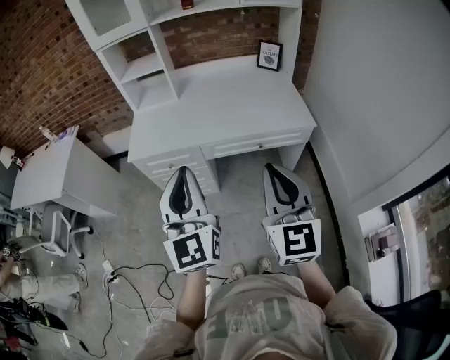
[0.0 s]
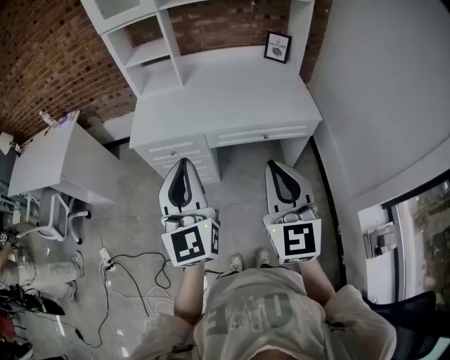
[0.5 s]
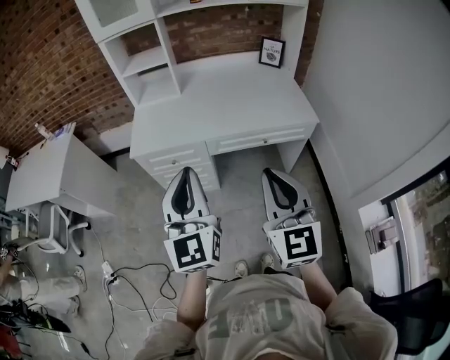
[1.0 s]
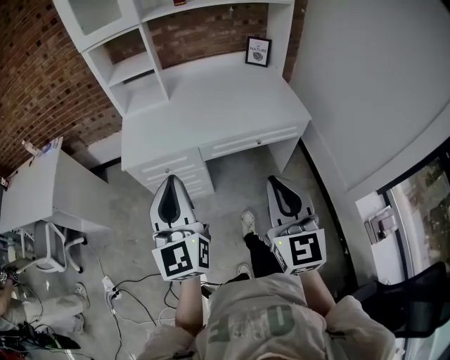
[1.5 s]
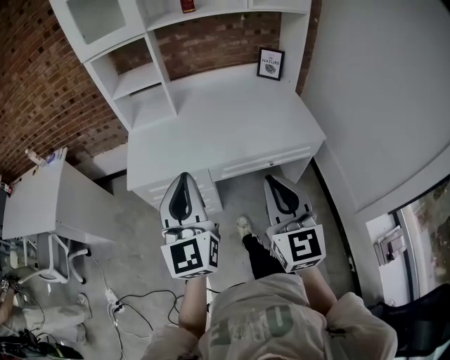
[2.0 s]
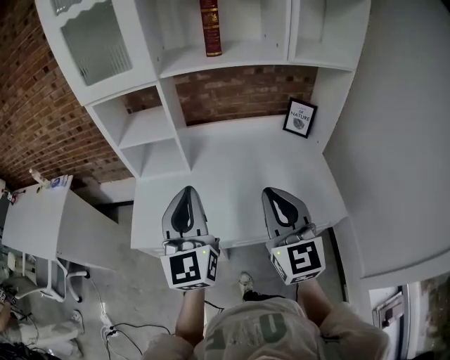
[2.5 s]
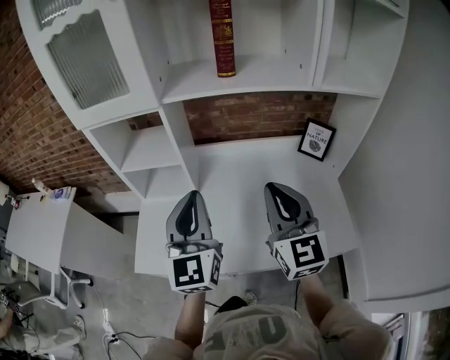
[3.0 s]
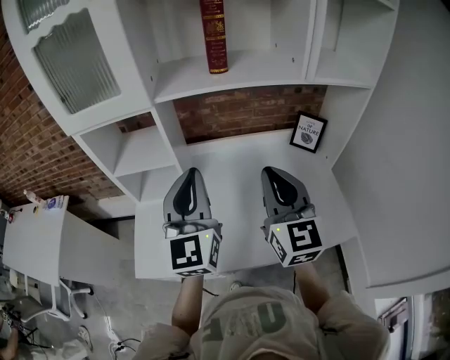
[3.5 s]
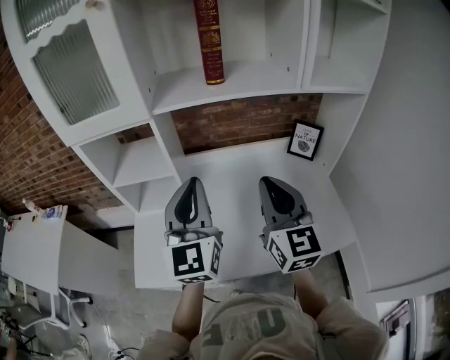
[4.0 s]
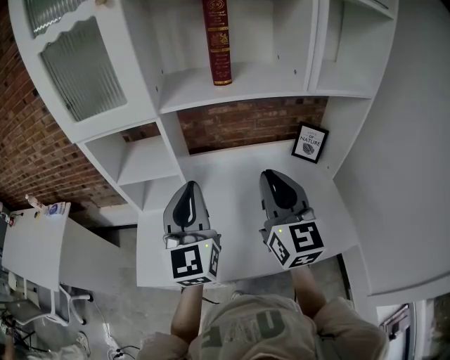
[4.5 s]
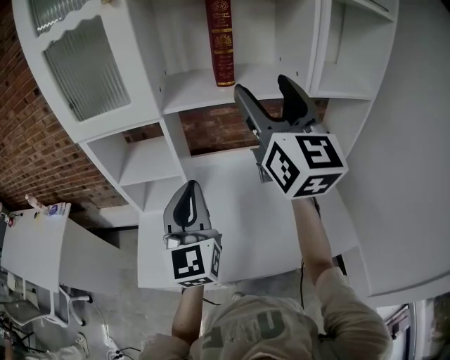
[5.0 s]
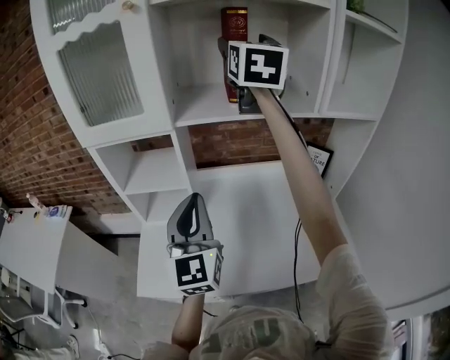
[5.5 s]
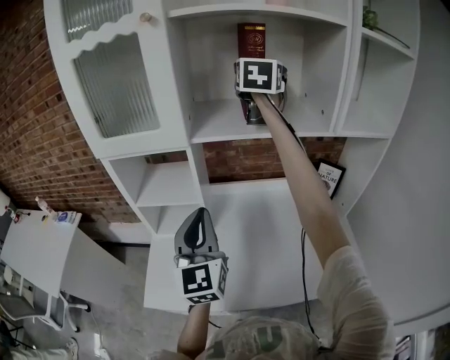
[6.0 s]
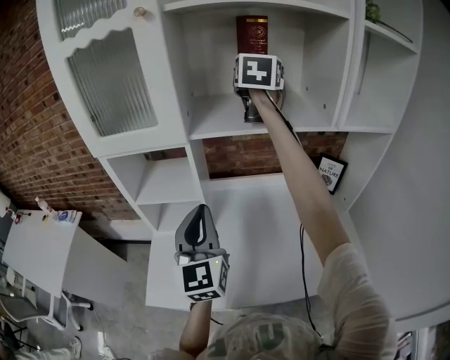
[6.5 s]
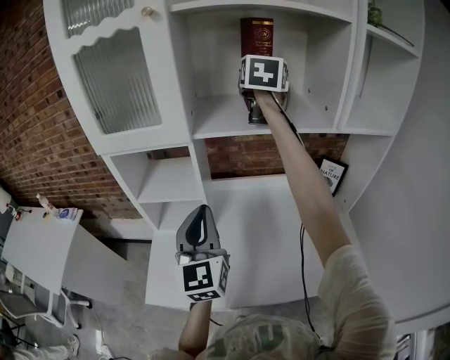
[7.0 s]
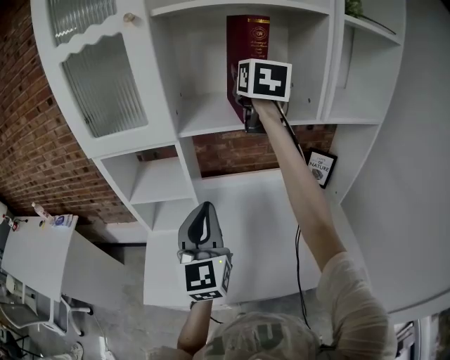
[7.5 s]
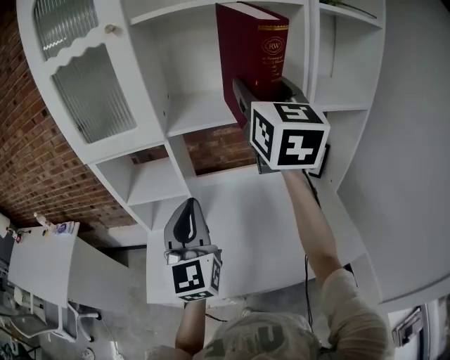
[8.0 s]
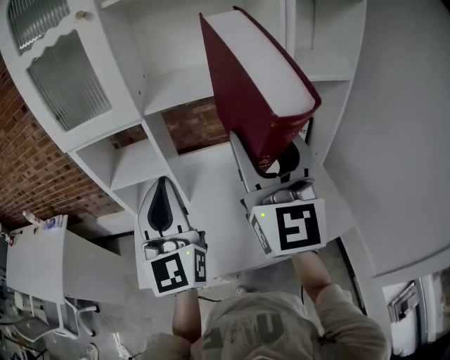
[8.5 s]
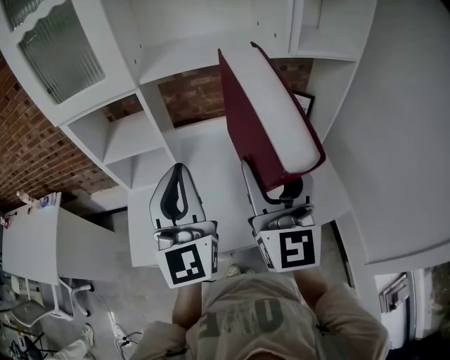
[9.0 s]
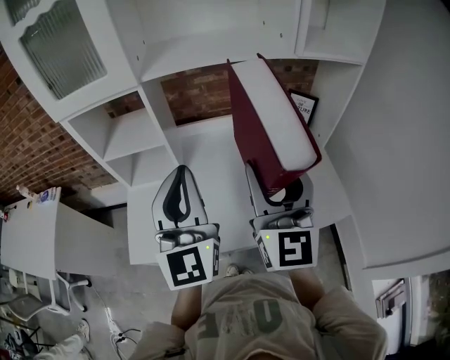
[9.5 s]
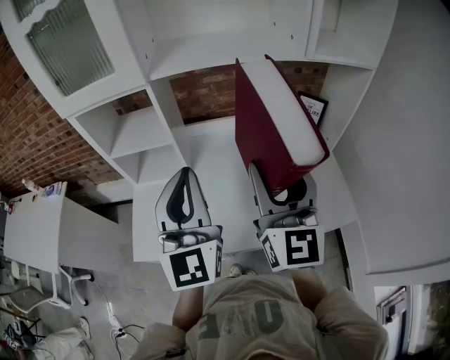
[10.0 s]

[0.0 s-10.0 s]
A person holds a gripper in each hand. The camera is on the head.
0.0 to 2.0 s: Both grippers travel together forward and to the left, some 15 cm.
2.0 to 4.0 s: Both grippers travel together forward, about 40 cm.
4.0 to 6.0 s: The left gripper travels to the left by some 5 cm. The right gripper goes approximately 40 cm forward and upward, and opens up.
6.0 to 8.0 s: The right gripper heads backward, covering about 20 cm; the left gripper moves approximately 5 cm.
8.0 to 10.0 s: The right gripper goes approximately 25 cm downward and backward. The left gripper ends up some 5 cm from where it was.

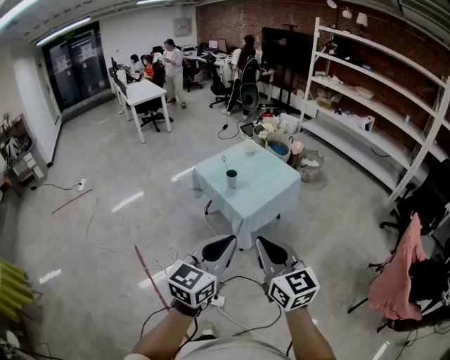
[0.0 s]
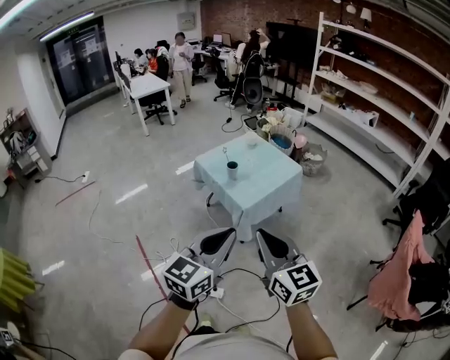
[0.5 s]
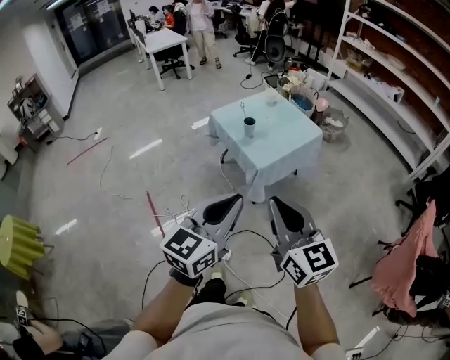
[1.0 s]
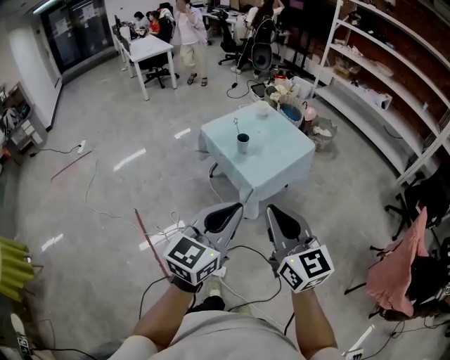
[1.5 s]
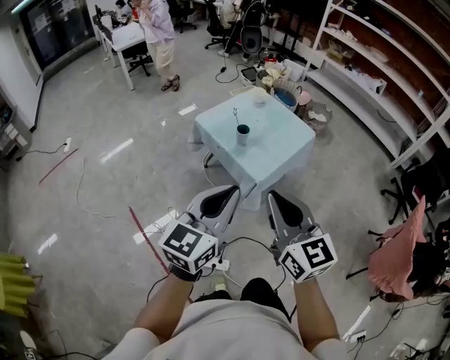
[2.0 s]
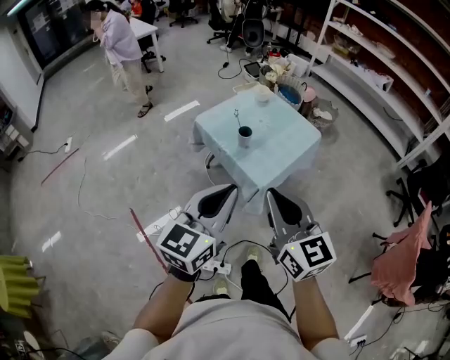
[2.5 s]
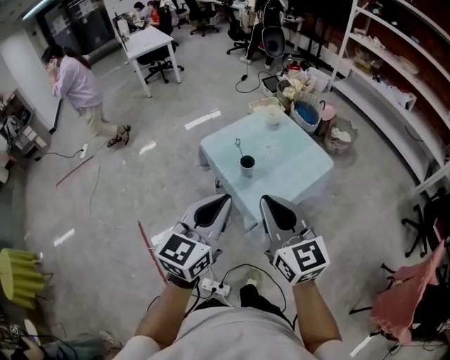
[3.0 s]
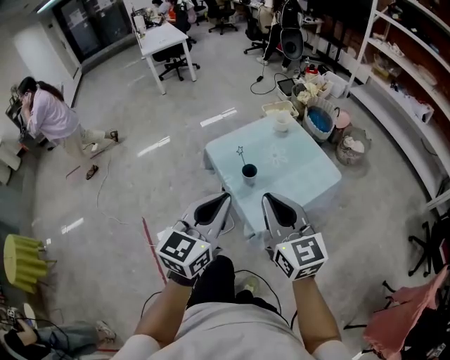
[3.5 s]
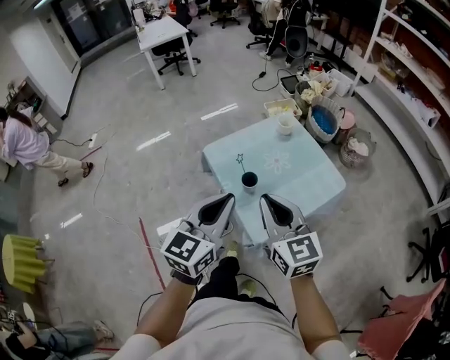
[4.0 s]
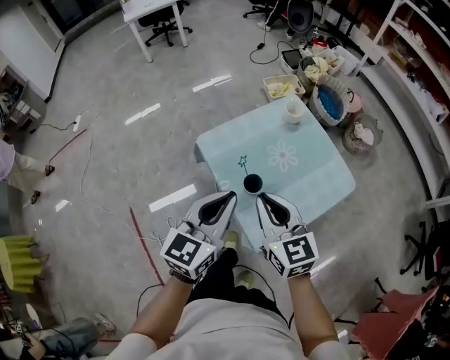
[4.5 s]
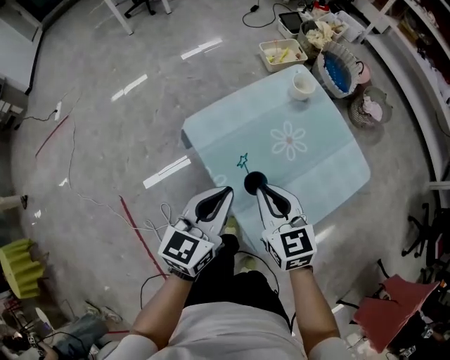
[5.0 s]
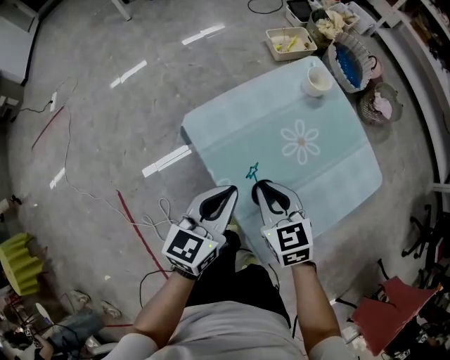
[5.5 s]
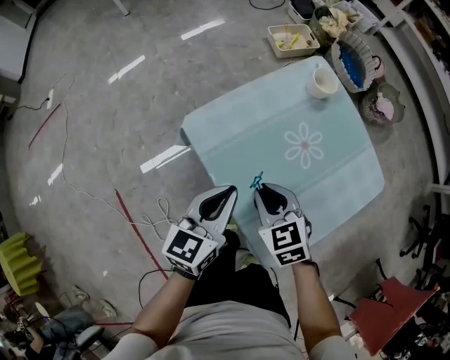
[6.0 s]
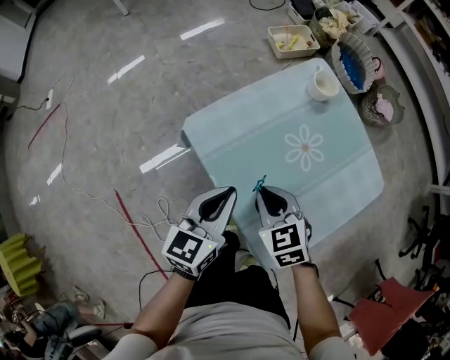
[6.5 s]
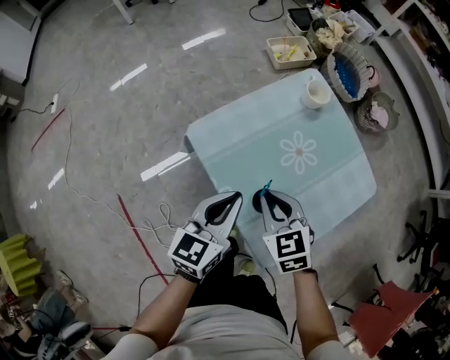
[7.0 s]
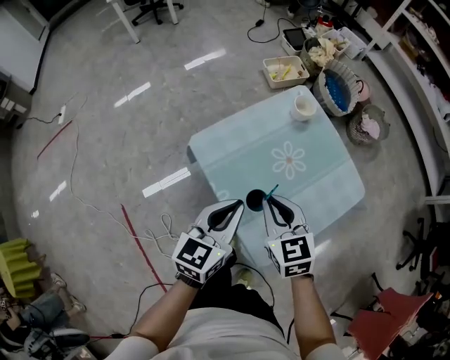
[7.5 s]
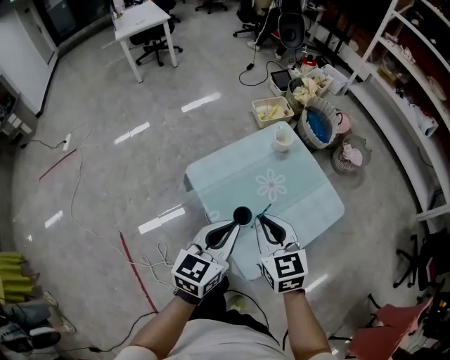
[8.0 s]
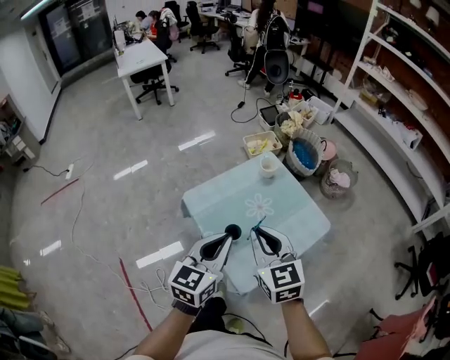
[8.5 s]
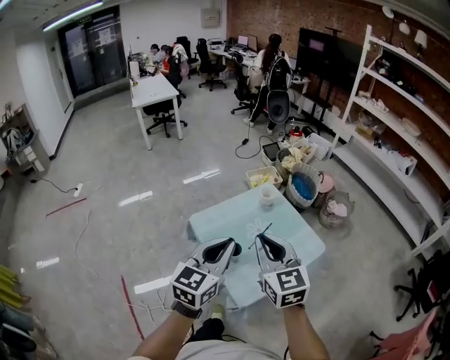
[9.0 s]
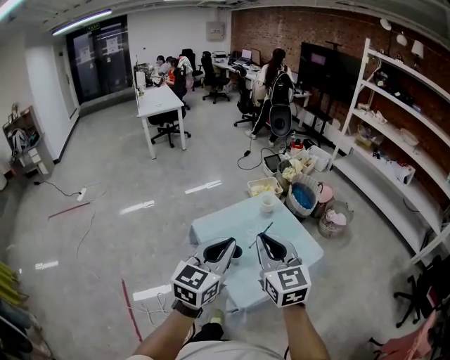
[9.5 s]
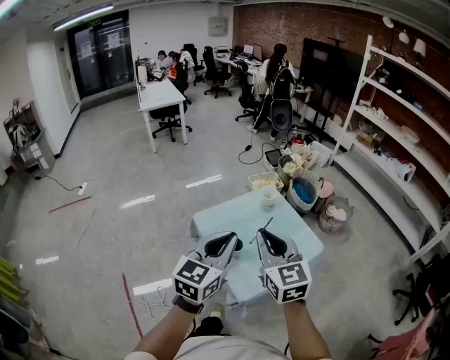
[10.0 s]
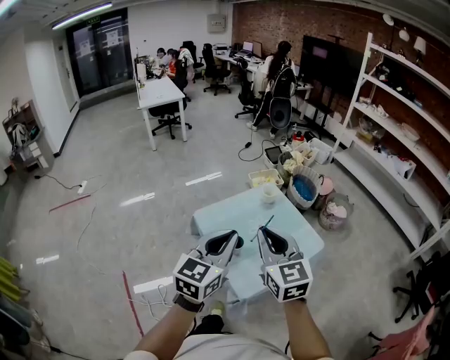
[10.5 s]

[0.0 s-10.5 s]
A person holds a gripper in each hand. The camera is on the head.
0.0 to 2.0 s: Both grippers travel together forward and to the left, some 15 cm.
2.0 to 4.0 s: The two grippers go roughly 35 cm forward.
4.0 to 6.5 s: The grippers both shift downward and forward by approximately 40 cm. The right gripper tilts its fingers approximately 40 degrees downward.
6.5 to 8.5 s: The right gripper moves upward, approximately 30 cm, and swivels approximately 30 degrees, while the left gripper heads upward and backward, covering about 25 cm.
8.5 to 10.5 s: The two grippers go roughly 15 cm upward and backward.

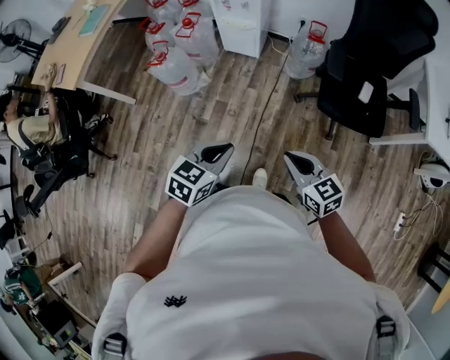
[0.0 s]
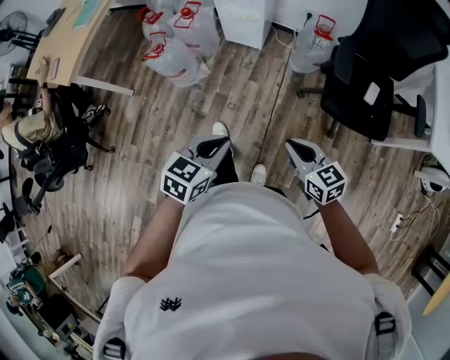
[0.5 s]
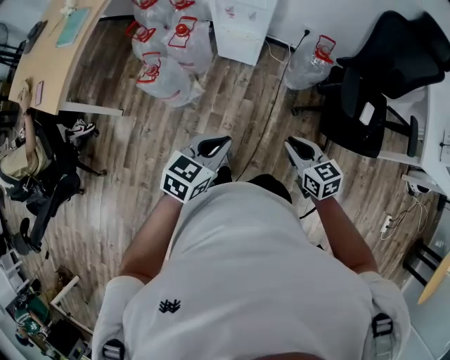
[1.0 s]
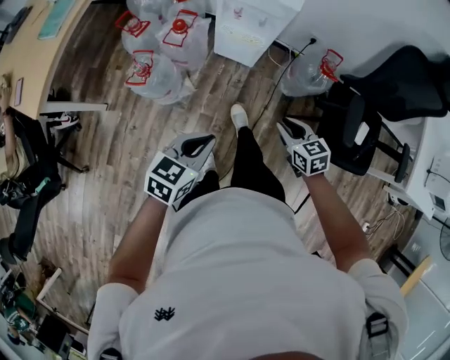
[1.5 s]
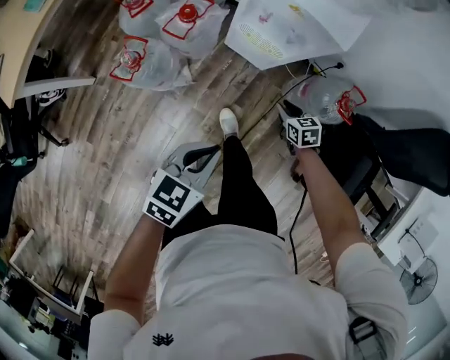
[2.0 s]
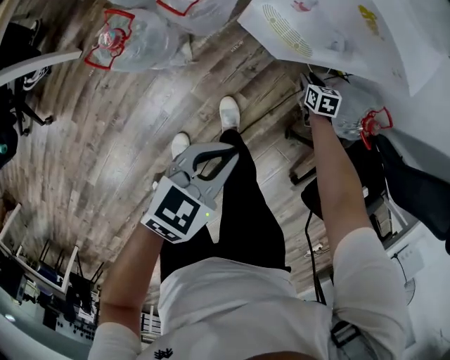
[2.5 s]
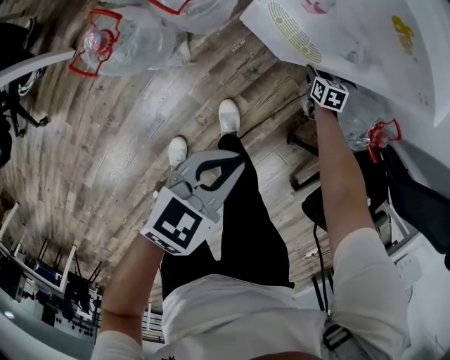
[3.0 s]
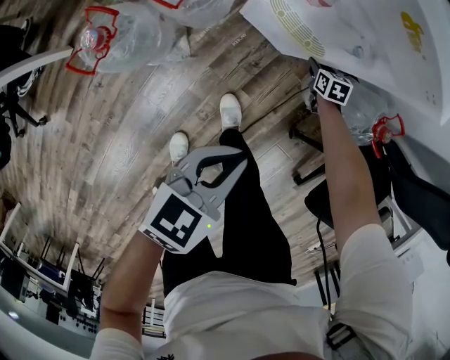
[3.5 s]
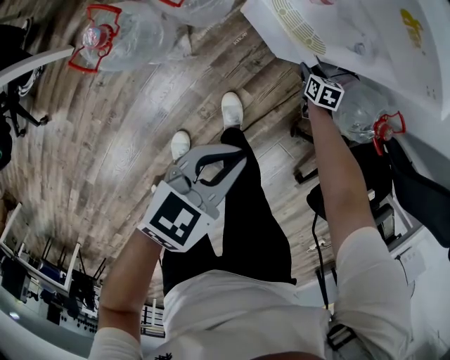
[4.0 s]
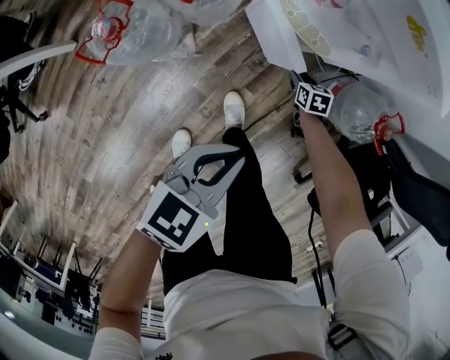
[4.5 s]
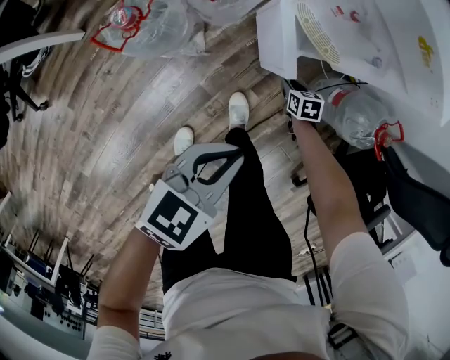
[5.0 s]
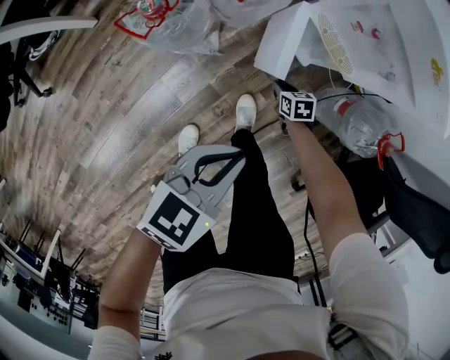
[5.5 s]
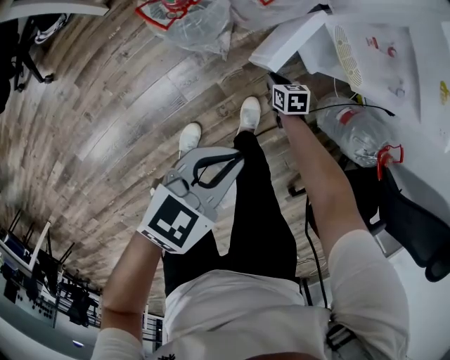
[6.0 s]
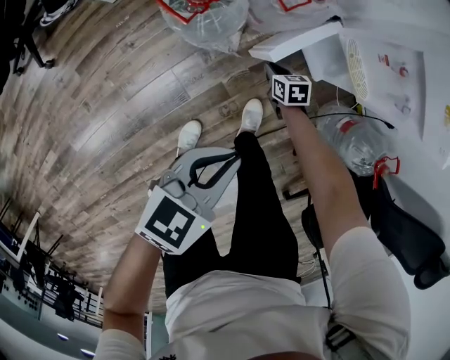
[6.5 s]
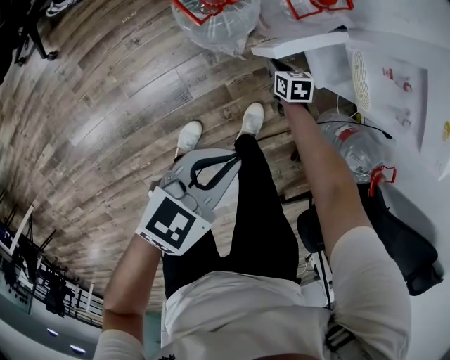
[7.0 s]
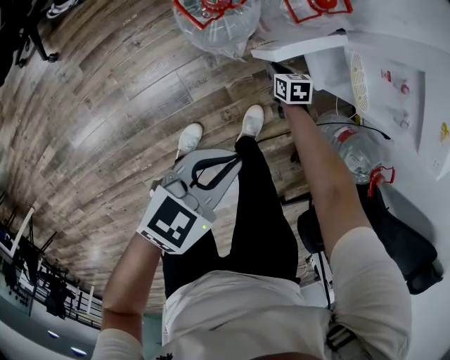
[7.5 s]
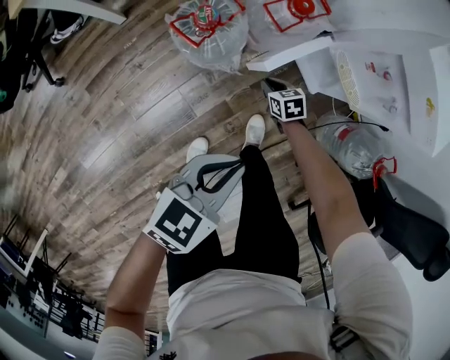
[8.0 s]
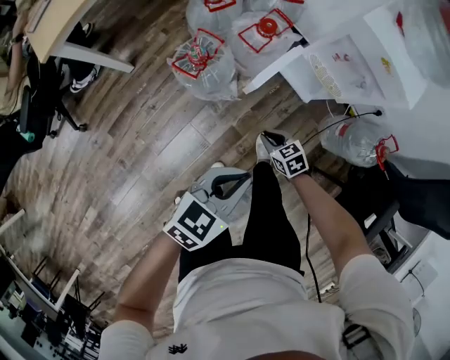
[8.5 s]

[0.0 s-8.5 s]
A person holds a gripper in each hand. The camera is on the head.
0.0 to 2.0 s: The two grippers travel together, forward, about 50 cm. The right gripper moves downward, about 35 cm, and swivels approximately 30 degrees.
2.0 to 4.0 s: The left gripper moves downward and forward, about 15 cm, while the right gripper travels downward and forward by roughly 30 cm.
4.0 to 6.5 s: The right gripper shifts by approximately 35 cm, turns by some 30 degrees, and closes, while the left gripper changes place by some 20 cm, and changes its angle by some 20 degrees.
6.5 to 8.5 s: The right gripper goes some 25 cm upward and backward, while the left gripper heads upward, covering roughly 10 cm.
